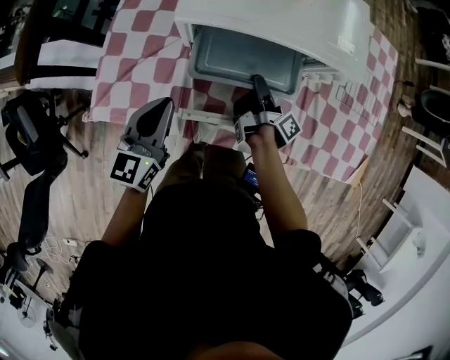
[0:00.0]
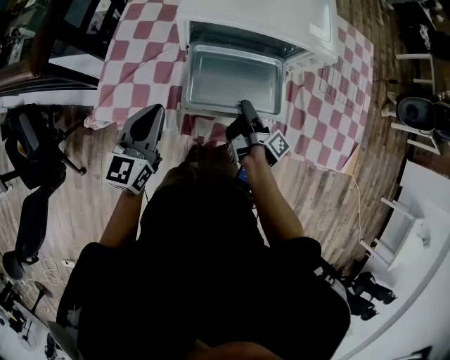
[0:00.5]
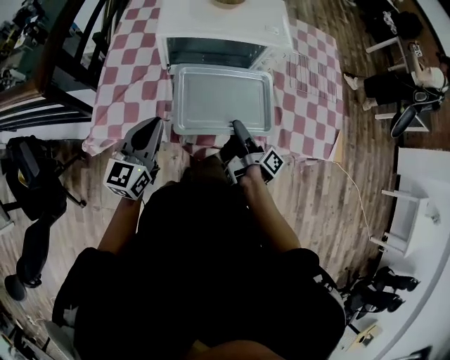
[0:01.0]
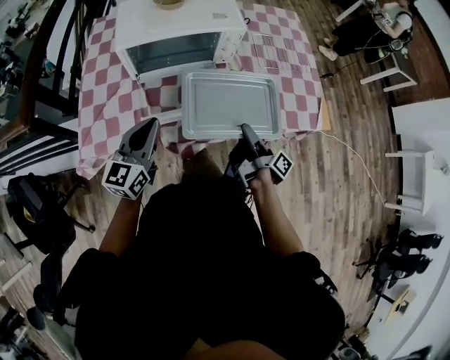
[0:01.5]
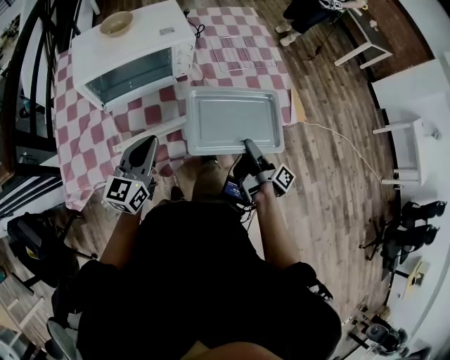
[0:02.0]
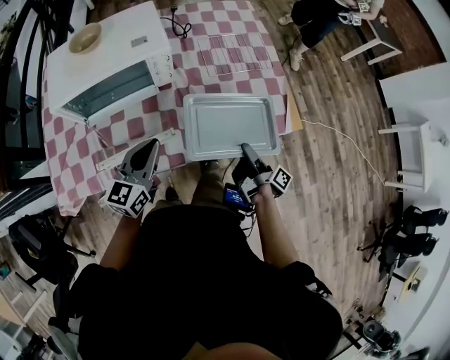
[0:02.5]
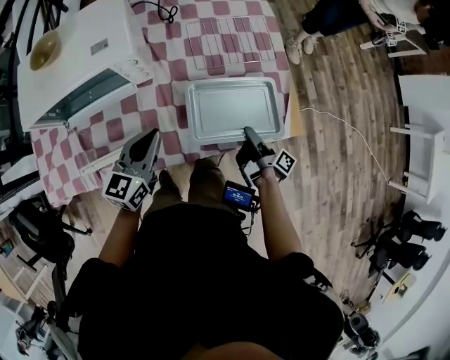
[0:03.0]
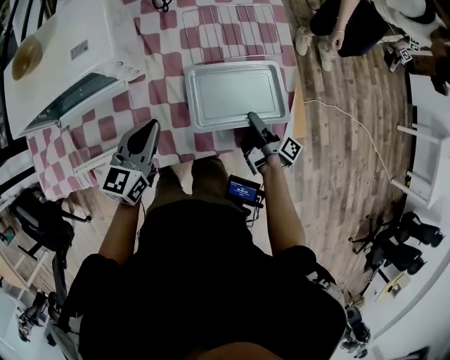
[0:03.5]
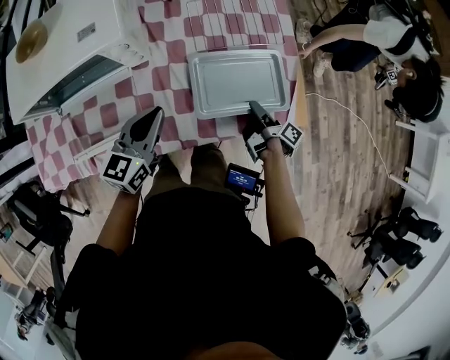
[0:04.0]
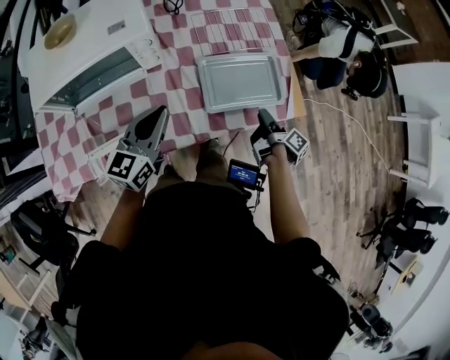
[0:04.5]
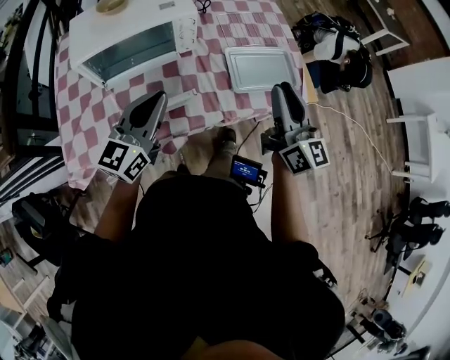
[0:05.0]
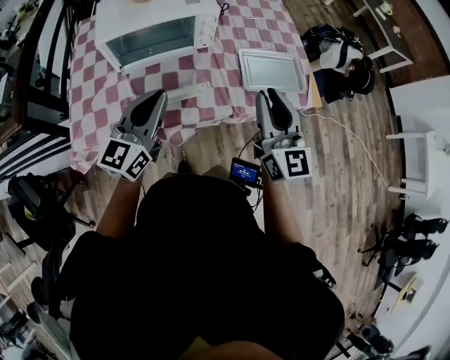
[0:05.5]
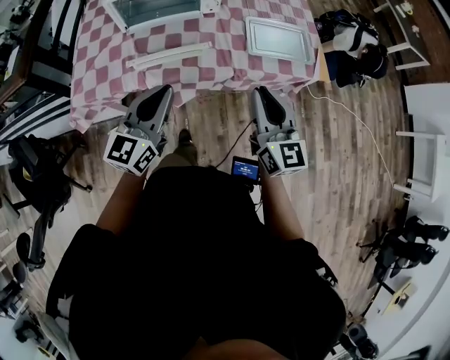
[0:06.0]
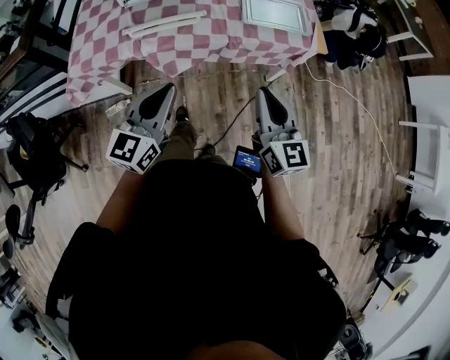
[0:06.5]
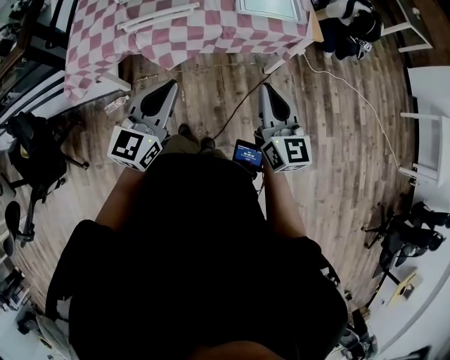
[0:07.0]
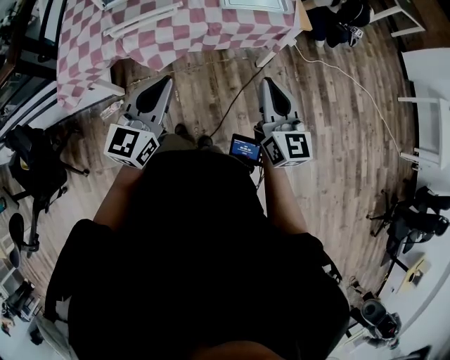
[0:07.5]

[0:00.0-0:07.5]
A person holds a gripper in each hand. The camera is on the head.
0:00.0 to 0:02.0: The left gripper is displaced to the right and backward by about 25 cm, and rotates approximately 30 degrees, while the right gripper shifts some 40 cm to the right and backward, and changes its angle by roughly 20 degrees.
0:02.0 to 0:04.0: The left gripper heads forward, to the right and downward, covering roughly 25 cm, while the right gripper goes roughly 30 cm forward, downward and to the right, and turns by about 20 degrees.
0:04.0 to 0:05.5: The left gripper heads backward, to the left and upward, covering roughly 35 cm, and changes its angle by about 20 degrees. Meanwhile the right gripper goes some 50 cm upward, backward and to the left, and rolls counterclockwise, seen from behind, by roughly 90 degrees.
0:05.5 to 0:07.5: The grippers both shift backward and to the right by about 30 cm.

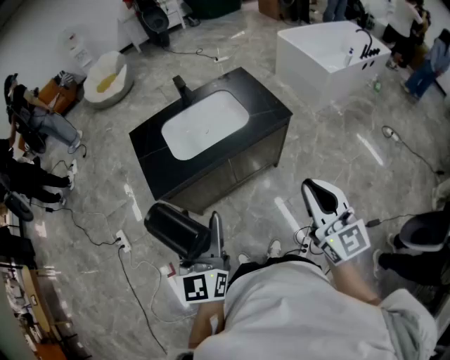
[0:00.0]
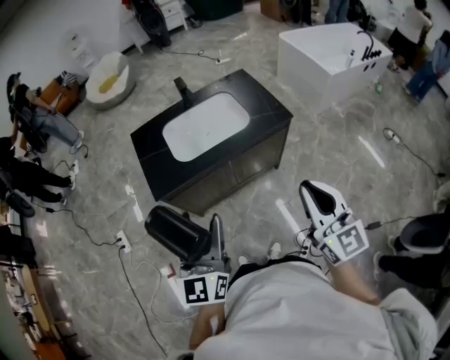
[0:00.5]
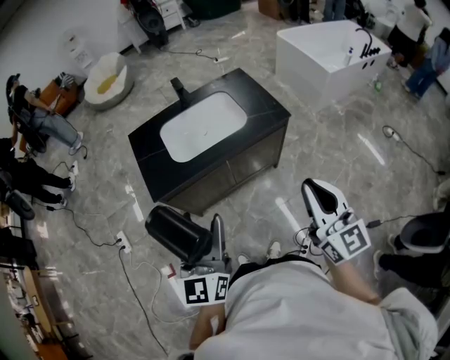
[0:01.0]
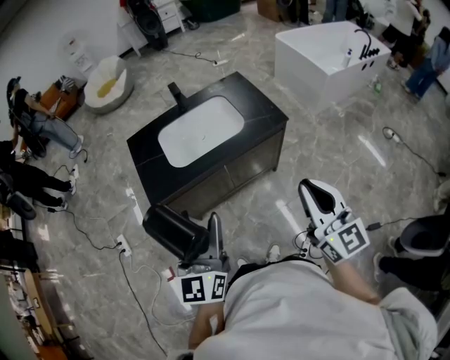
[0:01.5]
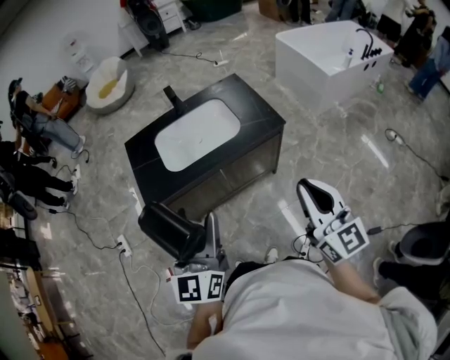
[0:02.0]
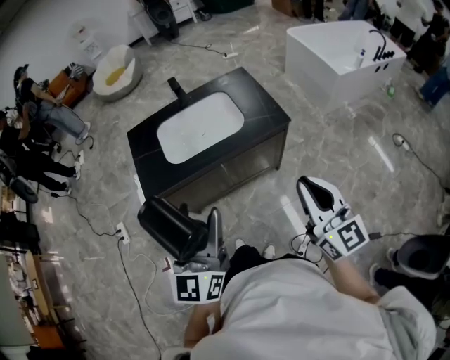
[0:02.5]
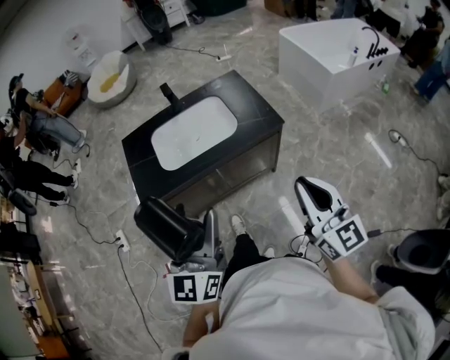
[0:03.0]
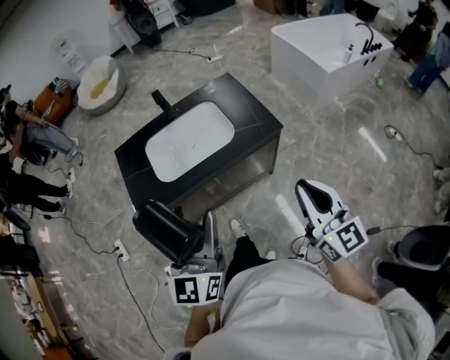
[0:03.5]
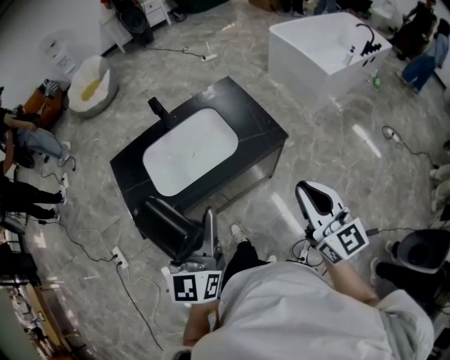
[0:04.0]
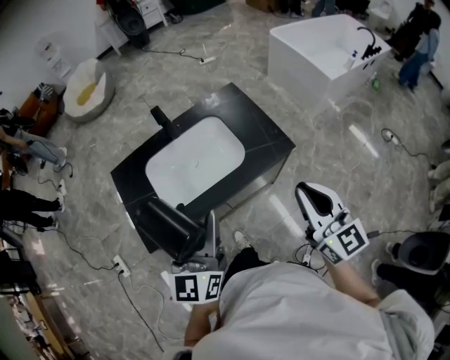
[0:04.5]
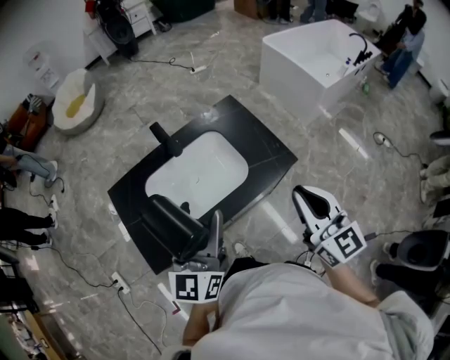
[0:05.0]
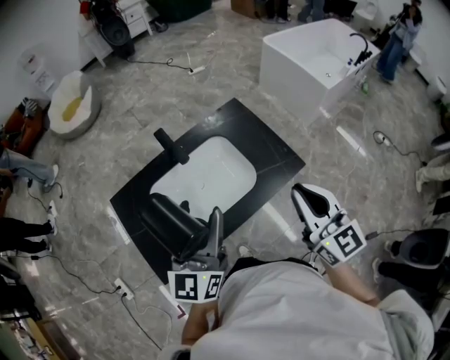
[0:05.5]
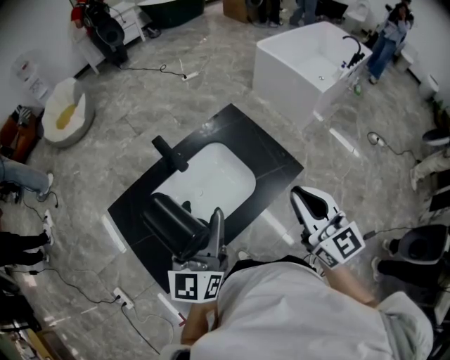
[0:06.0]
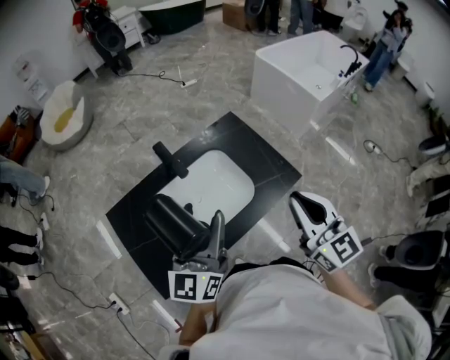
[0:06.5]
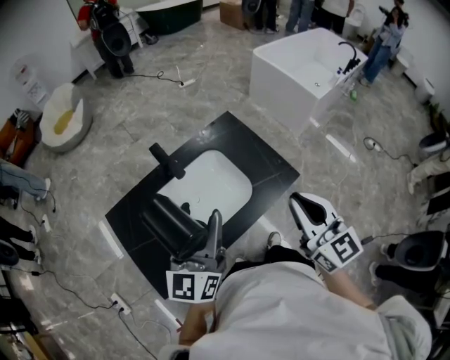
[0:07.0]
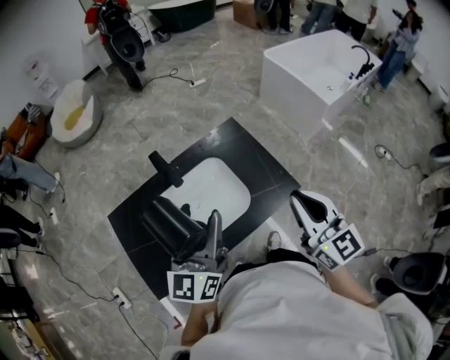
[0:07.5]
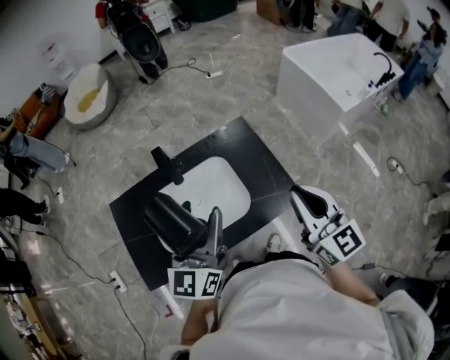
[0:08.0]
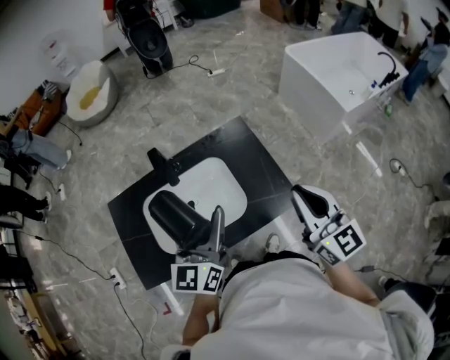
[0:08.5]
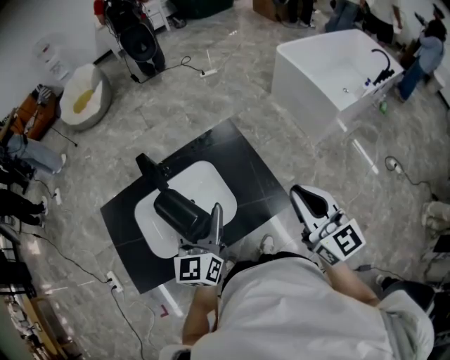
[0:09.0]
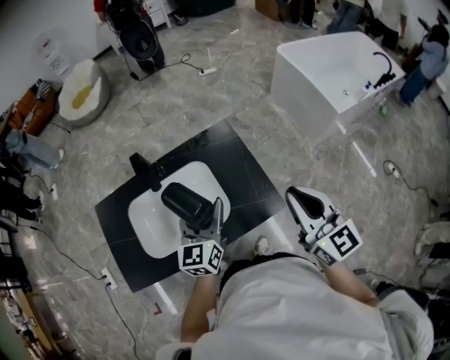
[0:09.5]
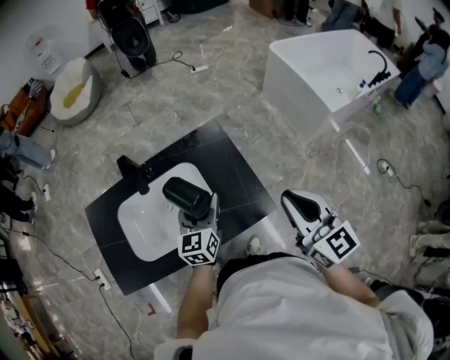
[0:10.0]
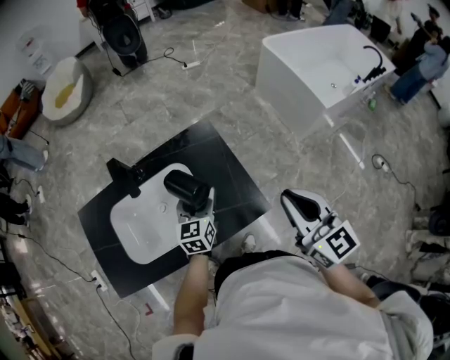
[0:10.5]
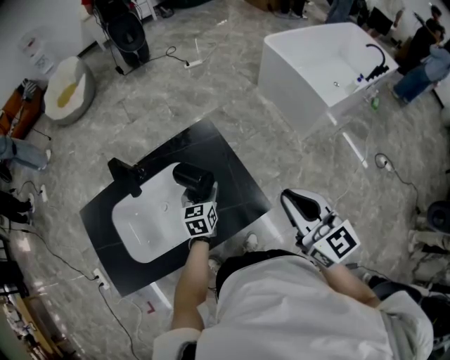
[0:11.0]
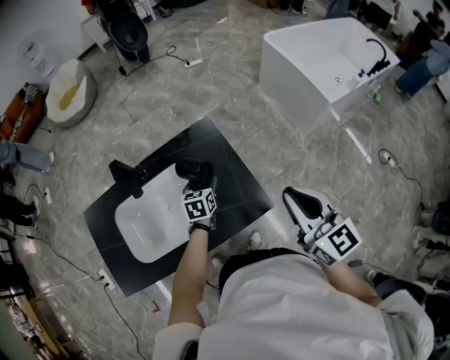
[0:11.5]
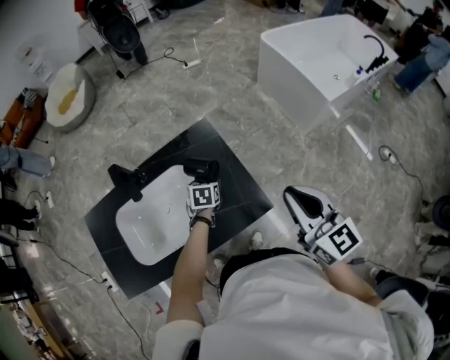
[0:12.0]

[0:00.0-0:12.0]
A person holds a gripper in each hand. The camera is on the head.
0:00.0 to 0:02.0: Both grippers travel together to the right, some 5 cm.
0:02.0 to 0:04.0: The grippers both shift forward by approximately 15 cm.
0:04.0 to 0:06.0: The right gripper moves forward and to the left, some 20 cm; the left gripper moves forward, approximately 20 cm.
0:06.0 to 0:08.0: The left gripper travels to the right and forward by roughly 10 cm. The right gripper goes approximately 10 cm forward and to the right.
0:08.0 to 0:10.0: The left gripper shifts roughly 25 cm downward, to the right and forward, and turns by about 20 degrees. Meanwhile the right gripper moves to the right, about 10 cm.
0:10.0 to 0:12.0: The left gripper travels downward and forward by about 20 cm, and angles its fingers downward, by approximately 40 degrees.

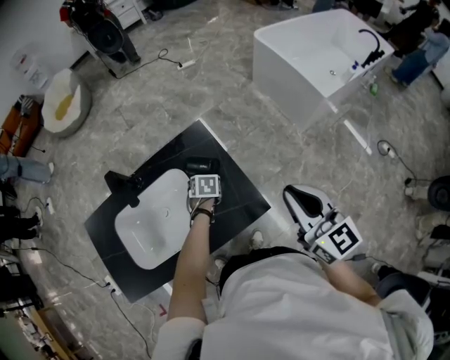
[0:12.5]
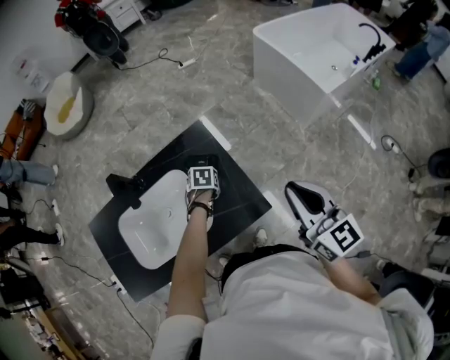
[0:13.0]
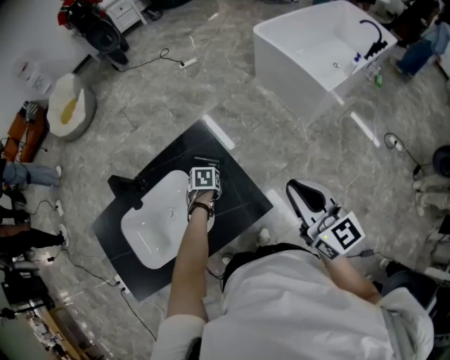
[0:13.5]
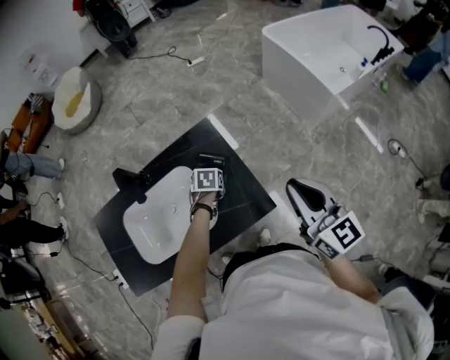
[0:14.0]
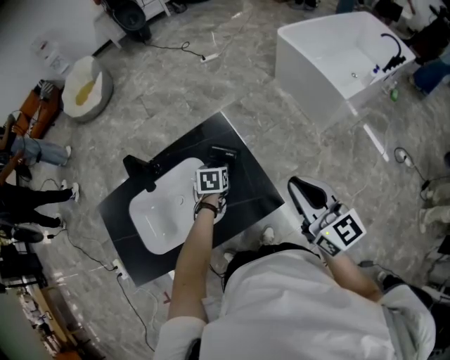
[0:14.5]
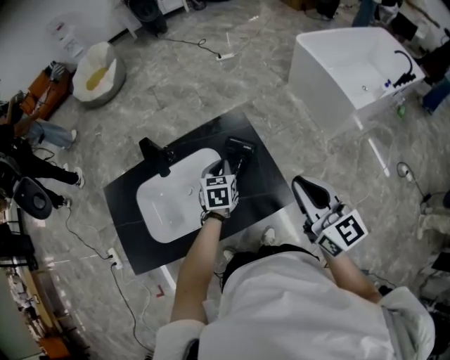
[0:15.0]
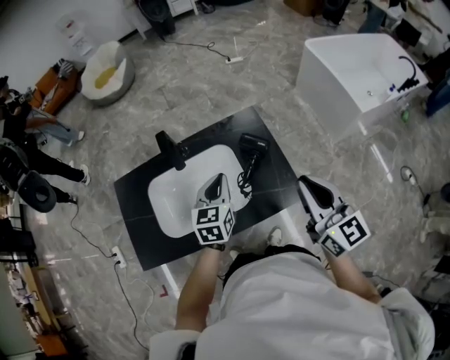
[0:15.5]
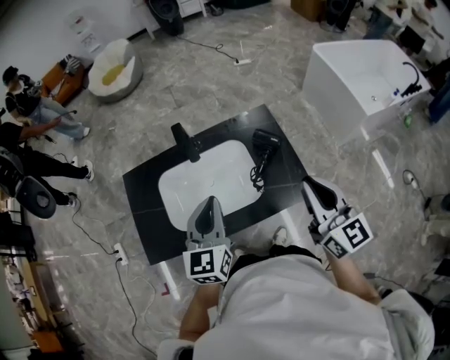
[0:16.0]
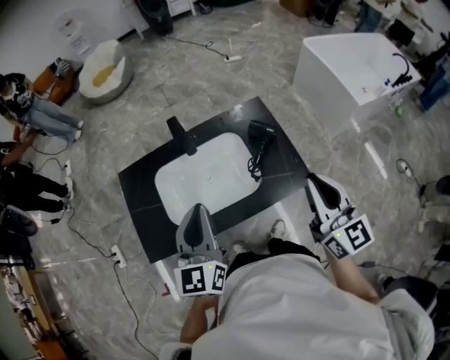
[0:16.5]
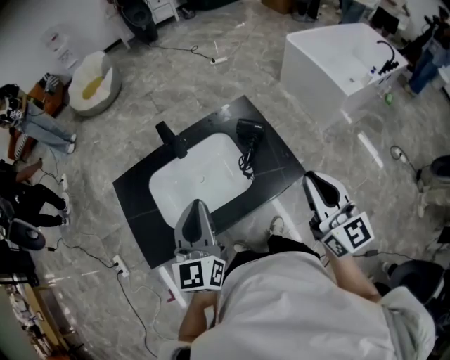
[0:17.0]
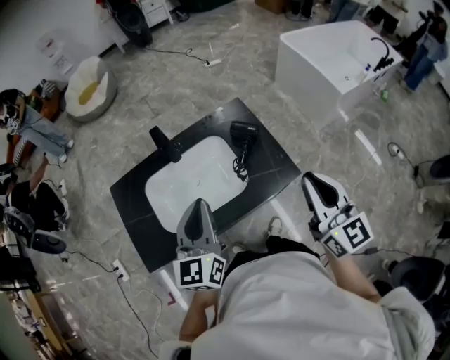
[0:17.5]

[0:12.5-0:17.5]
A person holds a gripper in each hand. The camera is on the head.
0:12.5 to 0:15.0: The right gripper travels to the left by approximately 5 cm; the left gripper travels upward by roughly 15 cm, turns by about 30 degrees, and closes up.
0:15.0 to 0:17.5: The right gripper heads backward and to the left, covering approximately 10 cm. Meanwhile the left gripper moves upward, backward and to the left, approximately 35 cm, and tips its fingers upward by some 40 degrees.

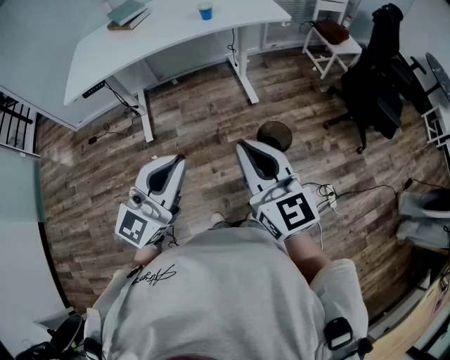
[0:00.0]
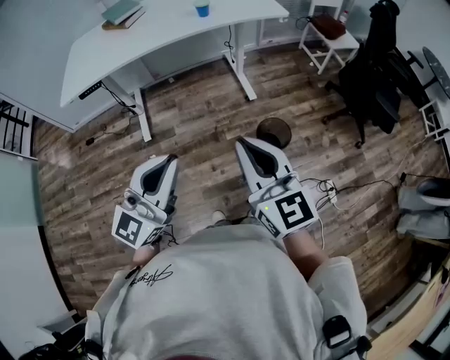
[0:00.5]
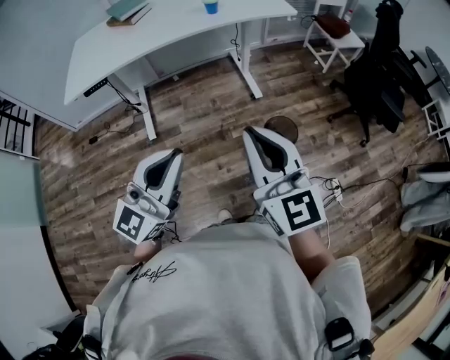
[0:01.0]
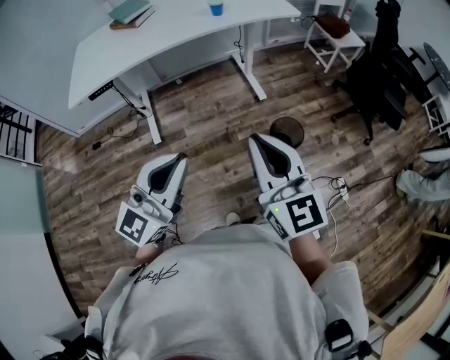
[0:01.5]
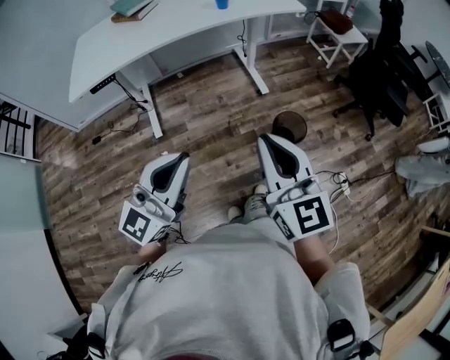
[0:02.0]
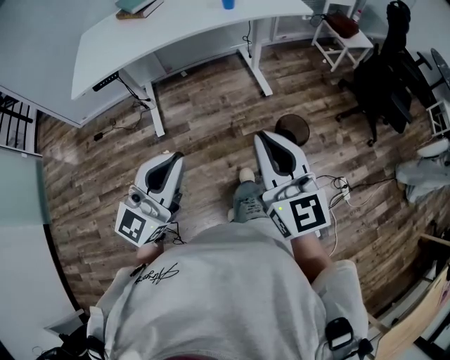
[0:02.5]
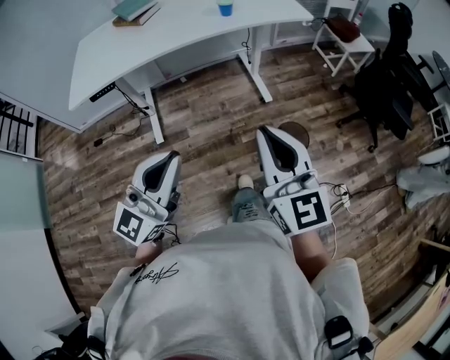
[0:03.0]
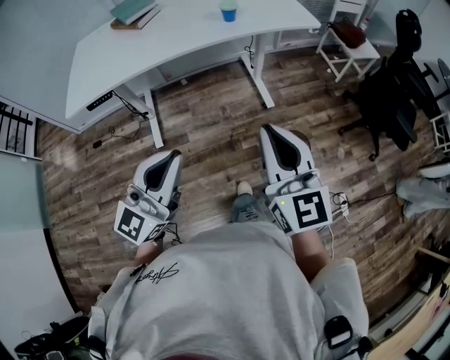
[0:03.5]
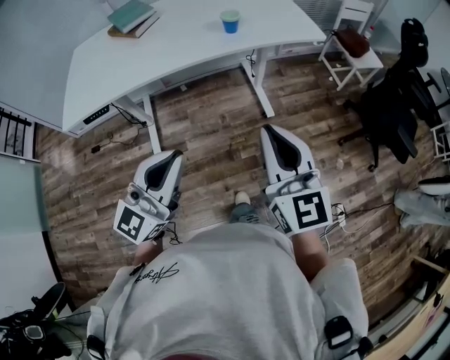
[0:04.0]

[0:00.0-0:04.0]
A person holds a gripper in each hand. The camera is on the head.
0:00.0 to 0:02.0: Both grippers move to the left, roughly 10 cm.
0:02.0 to 0:04.0: The grippers both shift forward by some 20 cm.
